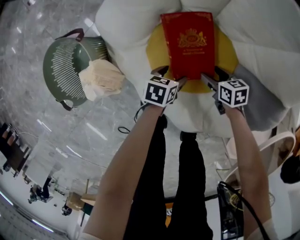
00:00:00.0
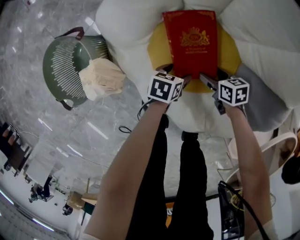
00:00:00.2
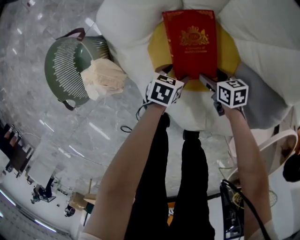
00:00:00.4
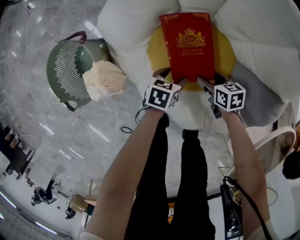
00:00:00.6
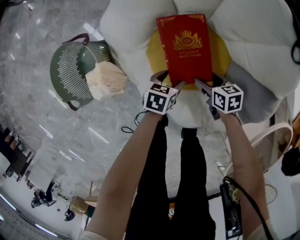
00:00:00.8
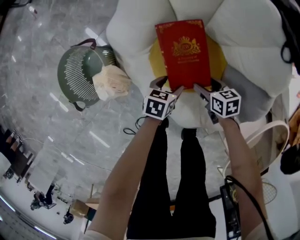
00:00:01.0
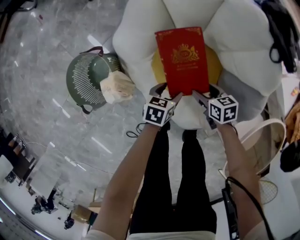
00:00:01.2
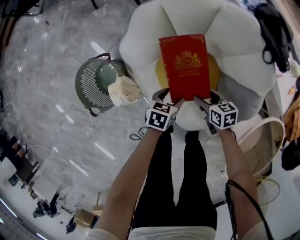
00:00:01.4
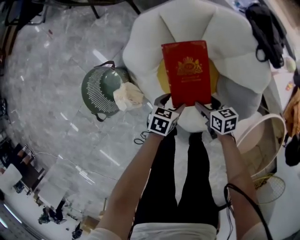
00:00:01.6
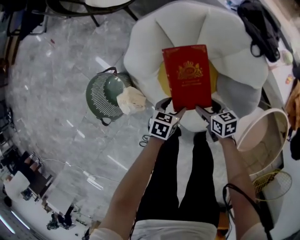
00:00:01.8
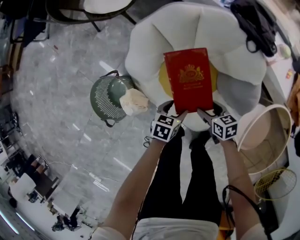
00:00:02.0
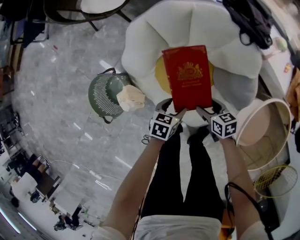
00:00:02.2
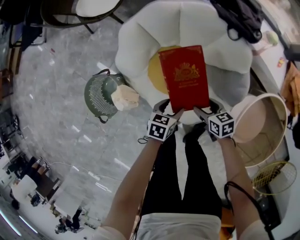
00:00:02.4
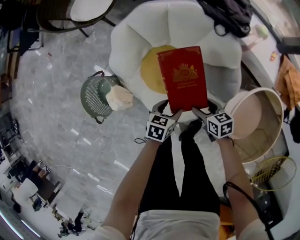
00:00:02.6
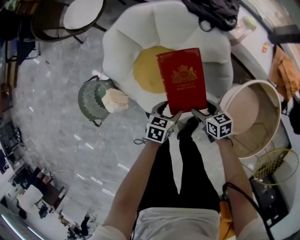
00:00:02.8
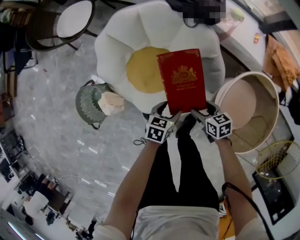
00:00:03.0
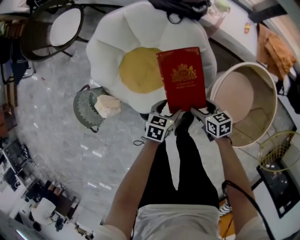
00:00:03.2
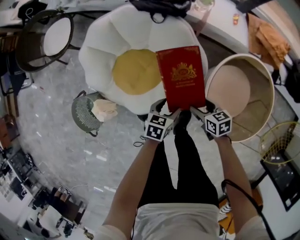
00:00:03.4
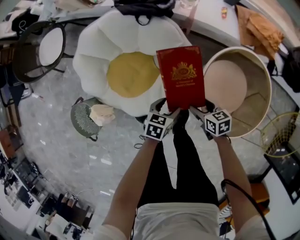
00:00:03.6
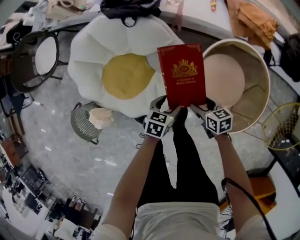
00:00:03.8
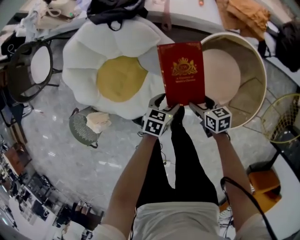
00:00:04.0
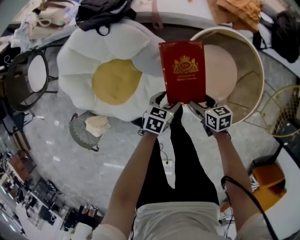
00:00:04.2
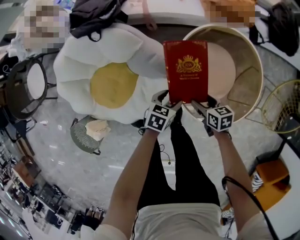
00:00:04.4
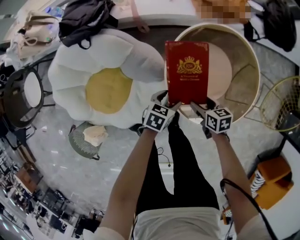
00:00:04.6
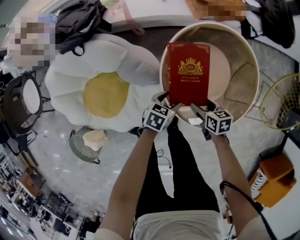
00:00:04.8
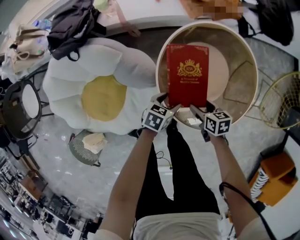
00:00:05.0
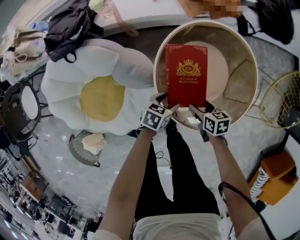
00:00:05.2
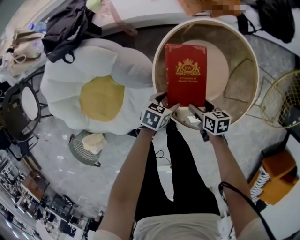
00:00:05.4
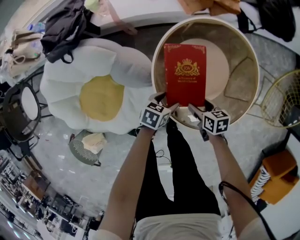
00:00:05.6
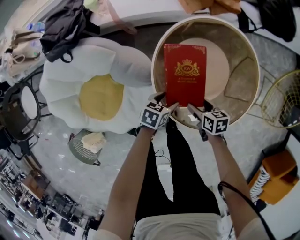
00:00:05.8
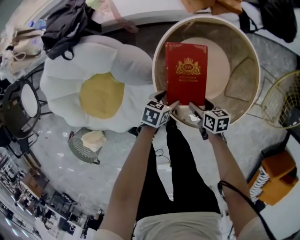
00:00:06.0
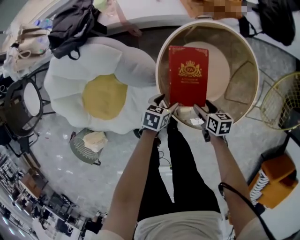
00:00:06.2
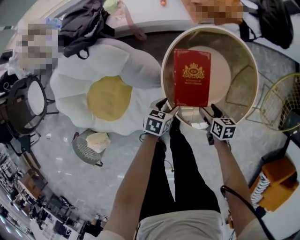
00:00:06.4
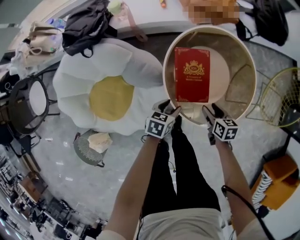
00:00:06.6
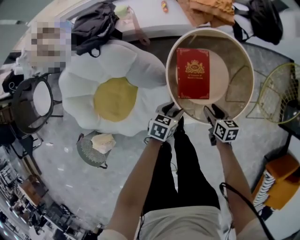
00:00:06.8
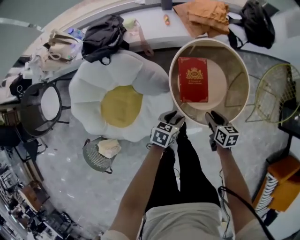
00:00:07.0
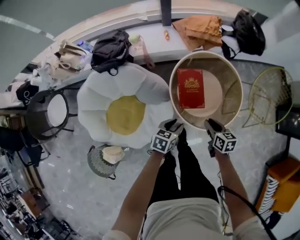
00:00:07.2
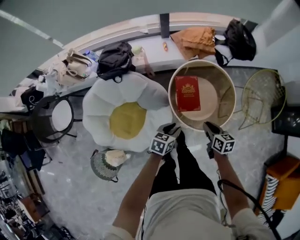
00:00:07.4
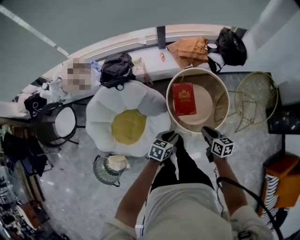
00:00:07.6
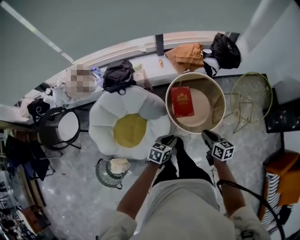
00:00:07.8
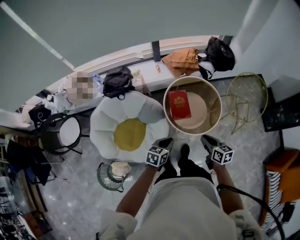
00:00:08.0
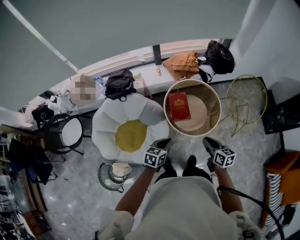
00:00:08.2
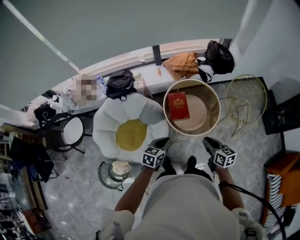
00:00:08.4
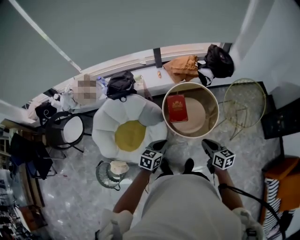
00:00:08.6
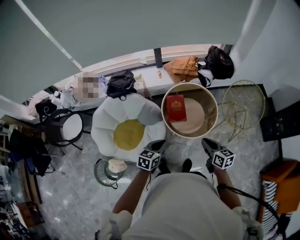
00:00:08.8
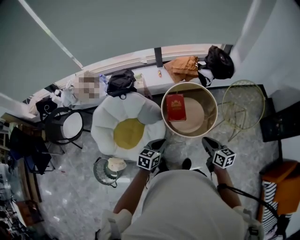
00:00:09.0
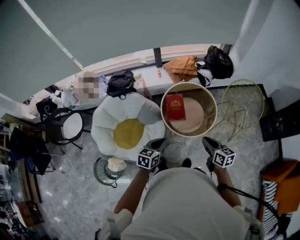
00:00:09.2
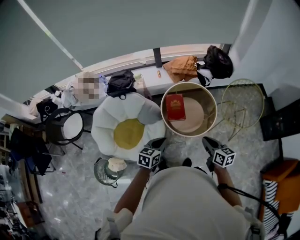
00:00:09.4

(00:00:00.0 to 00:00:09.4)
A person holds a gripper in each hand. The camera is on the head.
00:00:00.0 - 00:00:01.6: Both grippers move upward, about 25 cm.
00:00:01.6 - 00:00:03.2: The left gripper shifts approximately 25 cm to the right and upward, while the right gripper heads to the right, backward and upward, covering some 30 cm.
00:00:03.2 - 00:00:04.8: The right gripper ends up some 30 cm from where it was, and turns by roughly 40 degrees, while the left gripper ends up about 30 cm from where it was, and swivels roughly 40 degrees.
00:00:04.8 - 00:00:06.2: The right gripper ends up some 5 cm from where it was.
00:00:06.2 - 00:00:07.8: The right gripper is displaced upward by roughly 40 cm, turns by about 30 degrees, and closes up. The left gripper goes approximately 40 cm upward and backward, rotates roughly 20 degrees, and closes.
00:00:07.8 - 00:00:09.4: The left gripper shifts about 15 cm upward and backward. The right gripper shifts some 15 cm upward, to the right and backward.

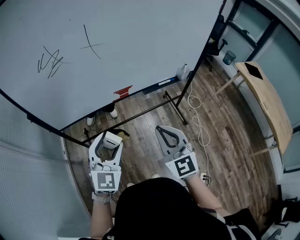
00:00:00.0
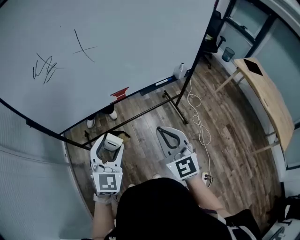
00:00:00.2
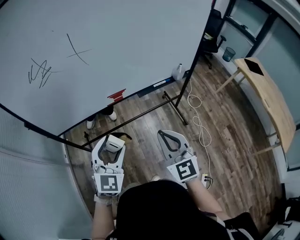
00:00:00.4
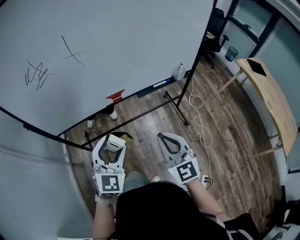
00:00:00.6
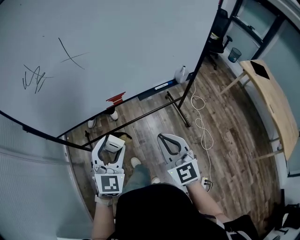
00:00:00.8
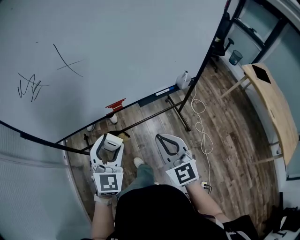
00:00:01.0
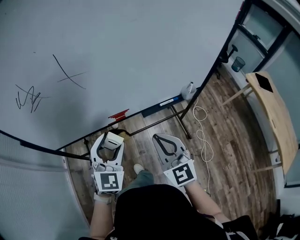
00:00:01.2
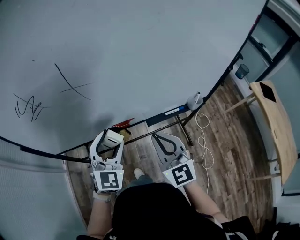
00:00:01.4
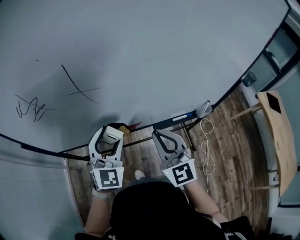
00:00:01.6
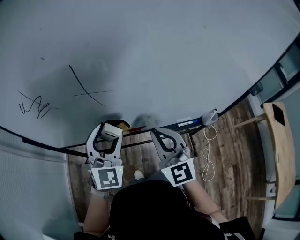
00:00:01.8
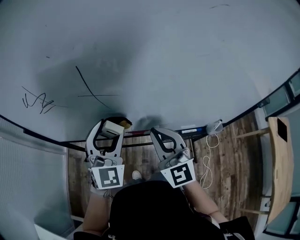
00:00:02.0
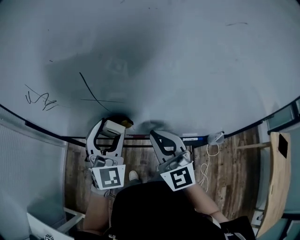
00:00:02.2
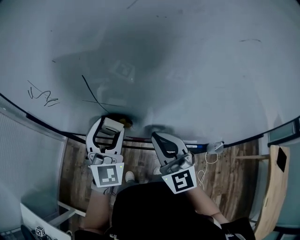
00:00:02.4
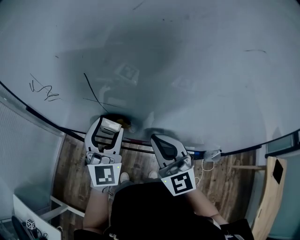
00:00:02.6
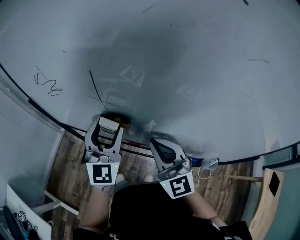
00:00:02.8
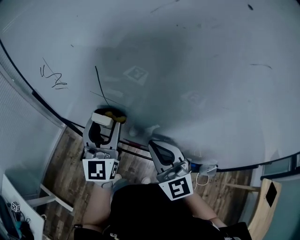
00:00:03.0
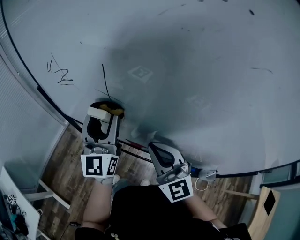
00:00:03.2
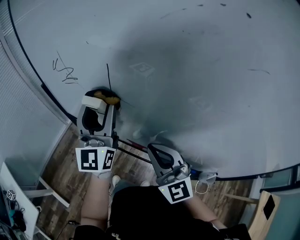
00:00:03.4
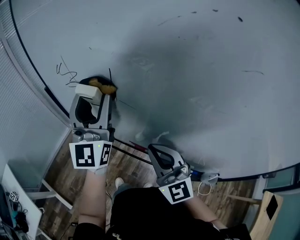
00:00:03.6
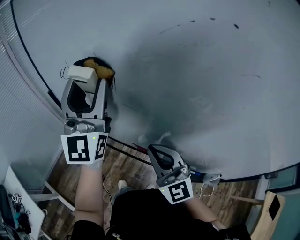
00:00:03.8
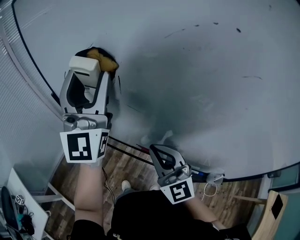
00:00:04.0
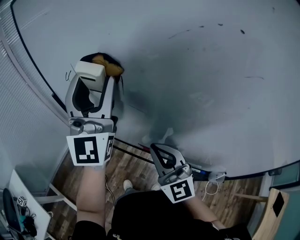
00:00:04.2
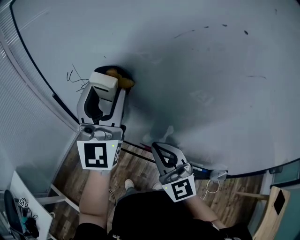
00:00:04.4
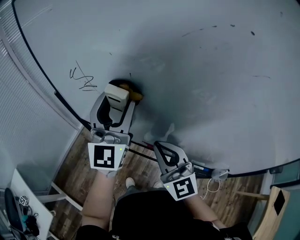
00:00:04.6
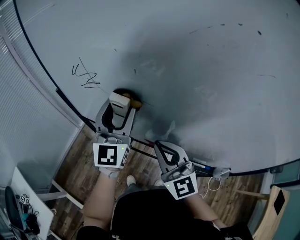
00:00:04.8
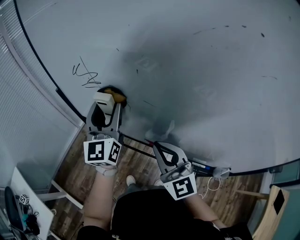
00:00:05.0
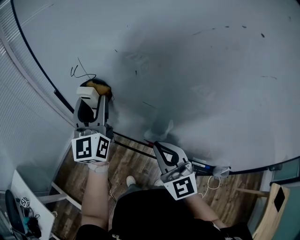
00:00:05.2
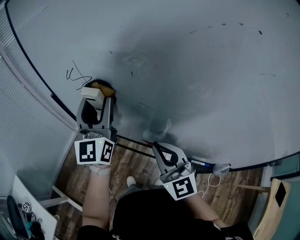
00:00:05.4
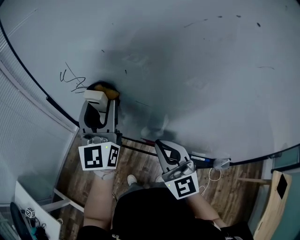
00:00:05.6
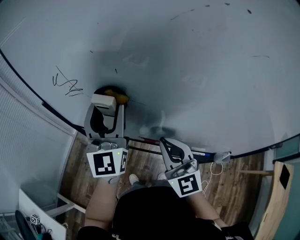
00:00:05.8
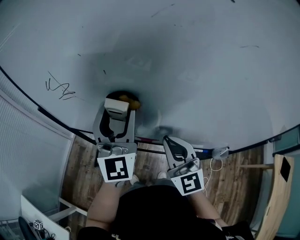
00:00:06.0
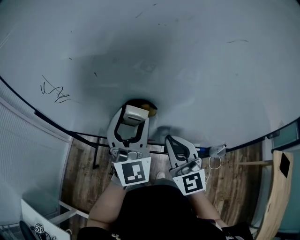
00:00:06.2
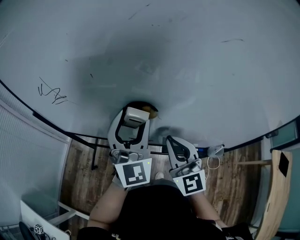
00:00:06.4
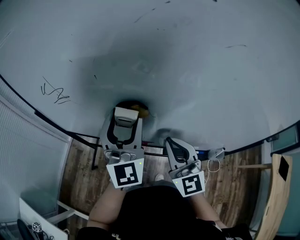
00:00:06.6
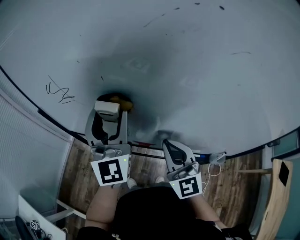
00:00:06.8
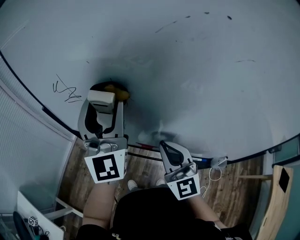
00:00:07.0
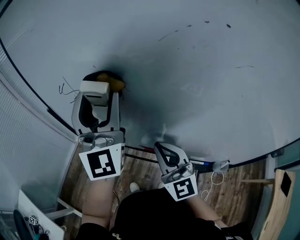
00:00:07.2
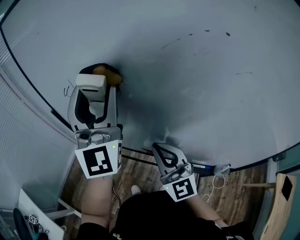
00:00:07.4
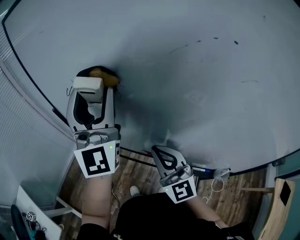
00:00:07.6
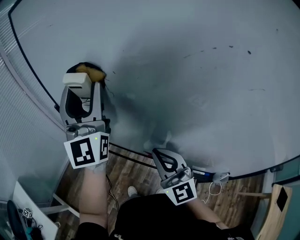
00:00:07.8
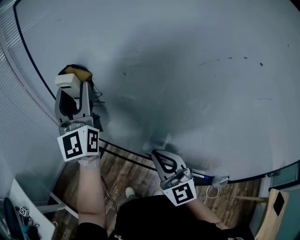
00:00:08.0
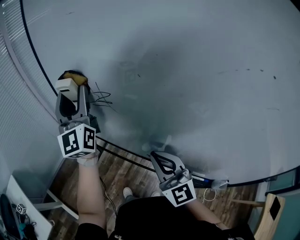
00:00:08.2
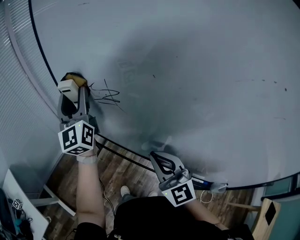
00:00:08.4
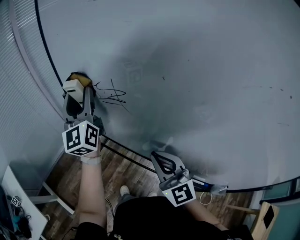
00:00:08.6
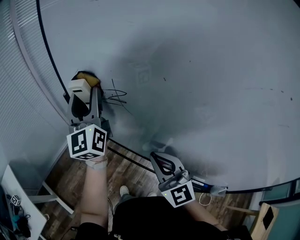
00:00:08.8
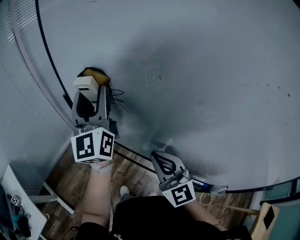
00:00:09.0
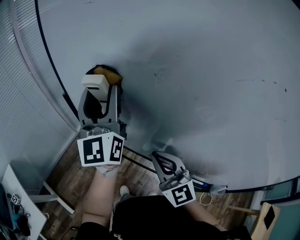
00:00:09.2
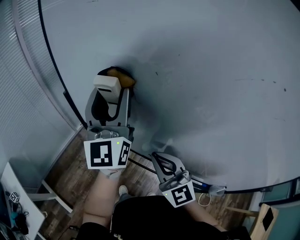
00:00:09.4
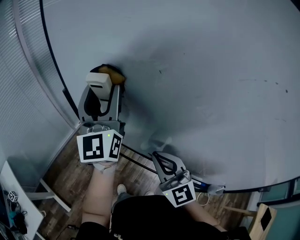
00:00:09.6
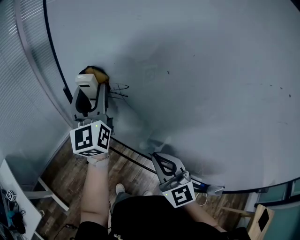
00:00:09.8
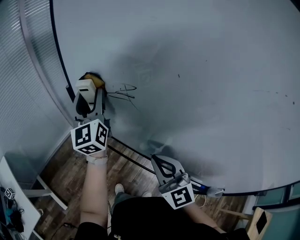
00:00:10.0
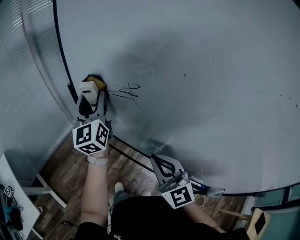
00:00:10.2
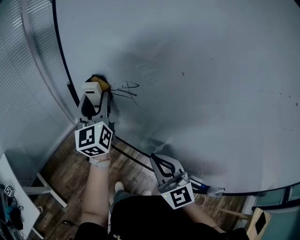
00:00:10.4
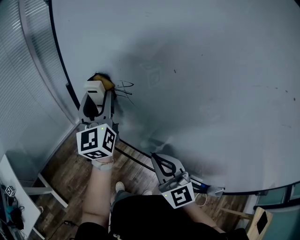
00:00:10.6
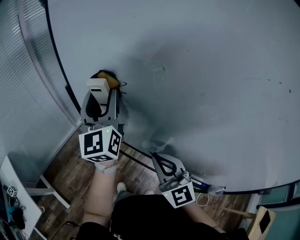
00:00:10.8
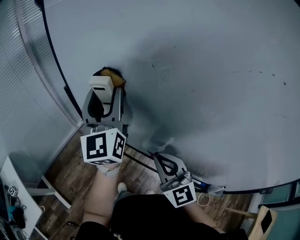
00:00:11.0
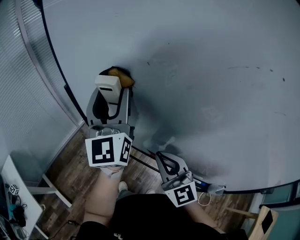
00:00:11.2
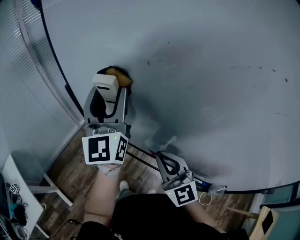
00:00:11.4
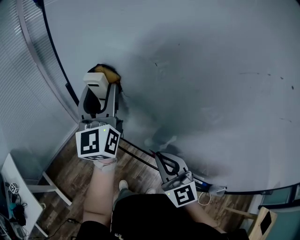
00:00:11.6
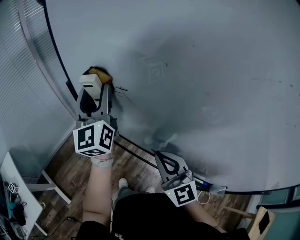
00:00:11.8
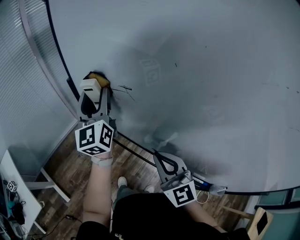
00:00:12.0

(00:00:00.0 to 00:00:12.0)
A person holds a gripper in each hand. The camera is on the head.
00:00:00.0 - 00:00:01.6: The two grippers go about 25 cm forward.
00:00:01.6 - 00:00:03.0: The left gripper ends up about 10 cm from where it was, and swivels about 50 degrees, while the right gripper changes place by some 10 cm, and turns by some 30 degrees.
00:00:03.0 - 00:00:04.4: The left gripper heads upward, covering about 15 cm; the right gripper goes about 5 cm to the left.
00:00:04.4 - 00:00:06.0: The left gripper goes some 10 cm downward and to the right.
00:00:06.0 - 00:00:07.6: The left gripper travels upward and to the left by about 15 cm, and turns by approximately 20 degrees, while the right gripper moves to the left, about 5 cm.
00:00:07.6 - 00:00:09.0: The right gripper goes about 5 cm to the left. Meanwhile the left gripper moves forward, to the left and downward, about 15 cm, and changes its angle by about 30 degrees.
00:00:09.0 - 00:00:10.4: The left gripper goes some 10 cm downward.
00:00:10.4 - 00:00:12.0: The left gripper moves some 10 cm upward and comes back.

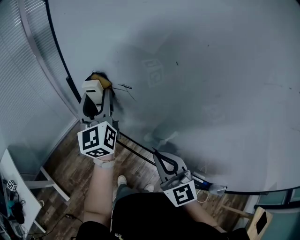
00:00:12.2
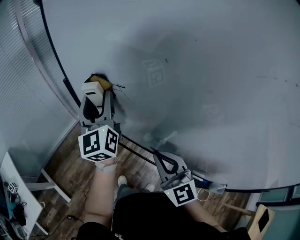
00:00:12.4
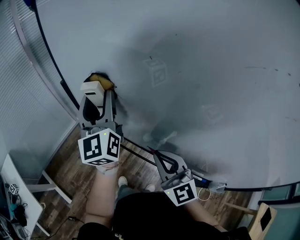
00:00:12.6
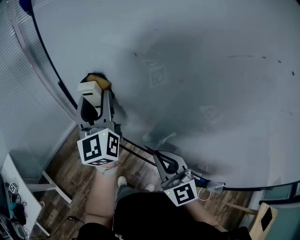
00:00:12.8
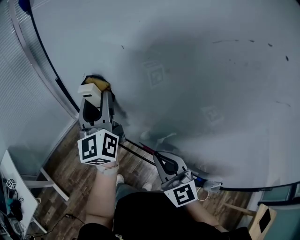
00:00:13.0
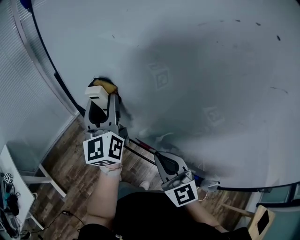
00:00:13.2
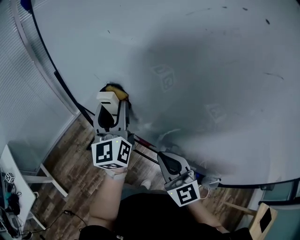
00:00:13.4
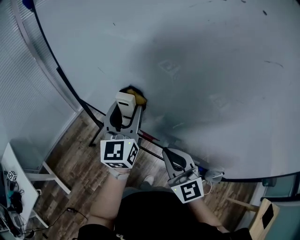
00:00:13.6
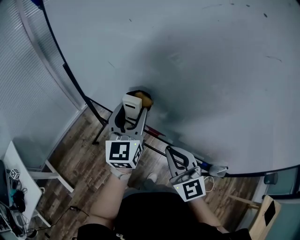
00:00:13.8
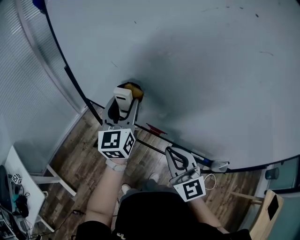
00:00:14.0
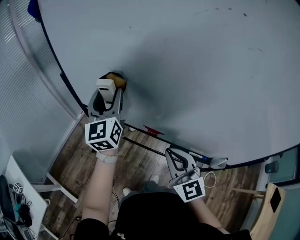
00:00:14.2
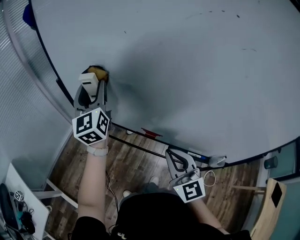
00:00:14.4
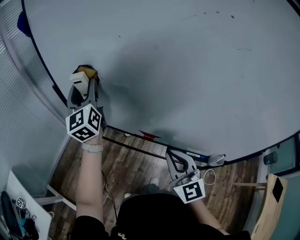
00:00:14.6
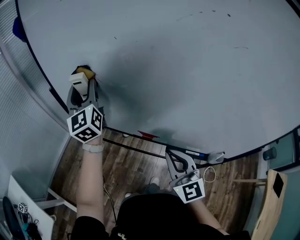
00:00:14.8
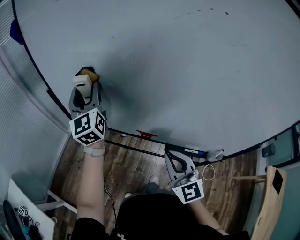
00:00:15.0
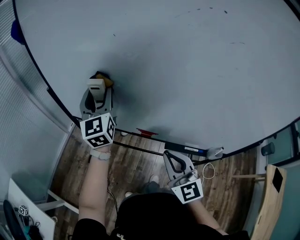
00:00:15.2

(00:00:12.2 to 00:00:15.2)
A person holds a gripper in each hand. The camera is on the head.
00:00:12.2 - 00:00:13.8: The left gripper shifts about 25 cm backward and to the right, and rotates approximately 20 degrees, while the right gripper is displaced backward and to the right by roughly 15 cm.
00:00:13.8 - 00:00:15.2: The left gripper heads forward and to the left, covering roughly 10 cm.
